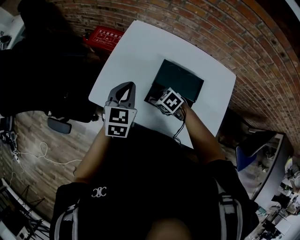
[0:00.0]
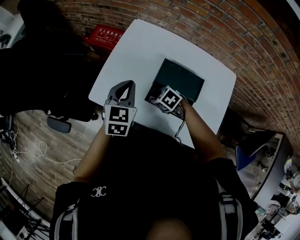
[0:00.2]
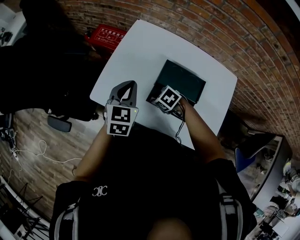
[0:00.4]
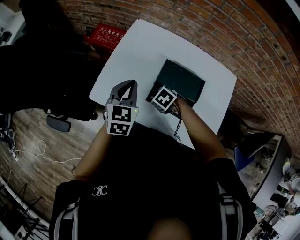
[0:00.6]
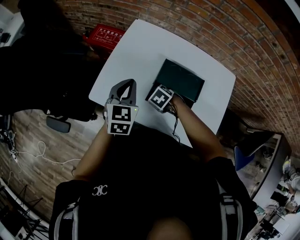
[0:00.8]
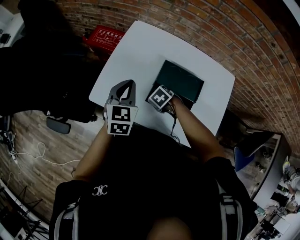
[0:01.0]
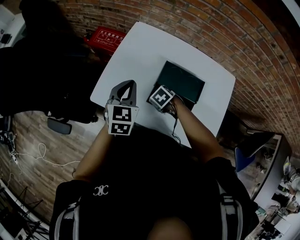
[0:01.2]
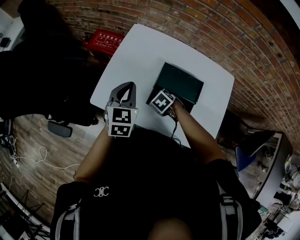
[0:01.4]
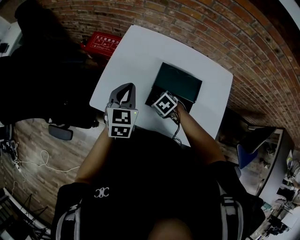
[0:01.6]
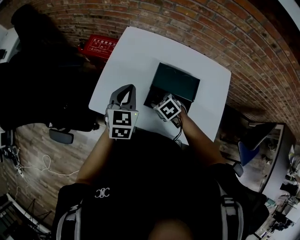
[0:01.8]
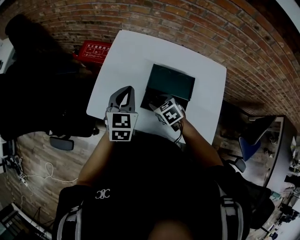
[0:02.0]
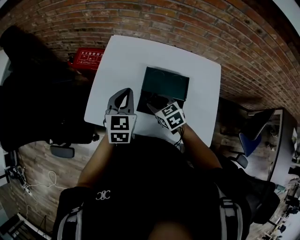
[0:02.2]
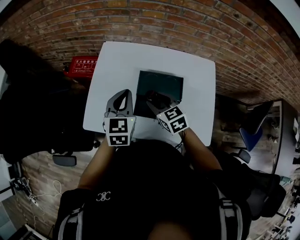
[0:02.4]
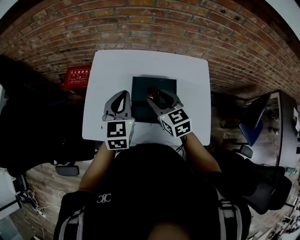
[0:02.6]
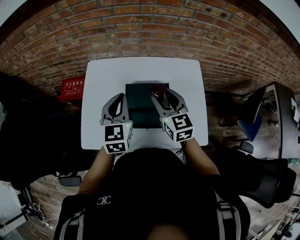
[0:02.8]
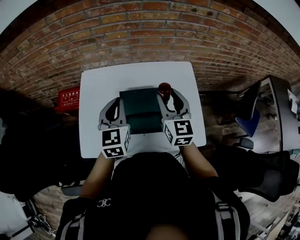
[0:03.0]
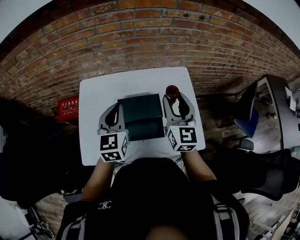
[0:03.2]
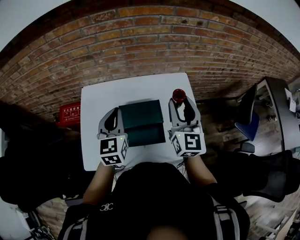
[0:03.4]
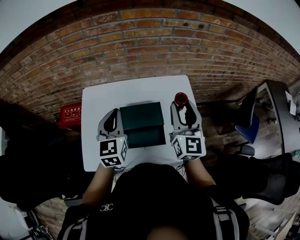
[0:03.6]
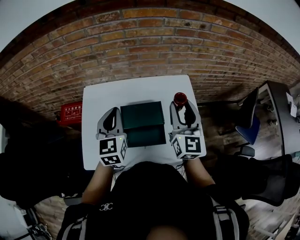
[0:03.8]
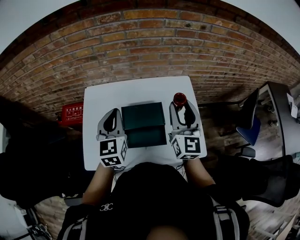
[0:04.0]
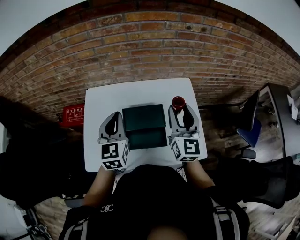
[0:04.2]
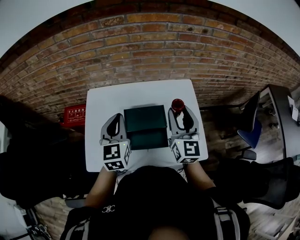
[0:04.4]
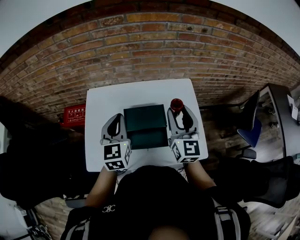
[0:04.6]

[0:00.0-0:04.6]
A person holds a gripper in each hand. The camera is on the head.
0:00.0 to 0:01.6: The grippers stay close to where they were, moving slightly.
0:01.6 to 0:03.0: The left gripper ends up roughly 15 cm from where it was; the right gripper heads upward, covering approximately 30 cm, and tilts its fingers about 60 degrees upward.
0:03.0 to 0:04.6: The right gripper shifts by about 5 cm.

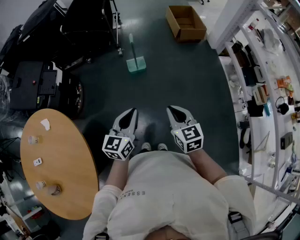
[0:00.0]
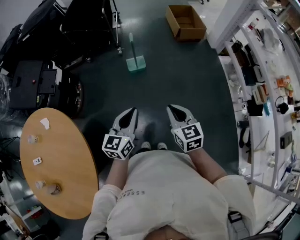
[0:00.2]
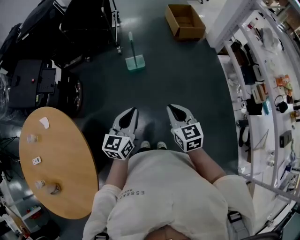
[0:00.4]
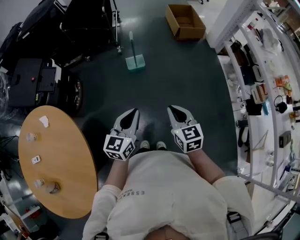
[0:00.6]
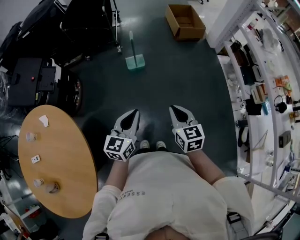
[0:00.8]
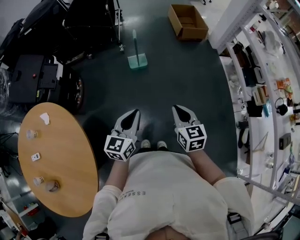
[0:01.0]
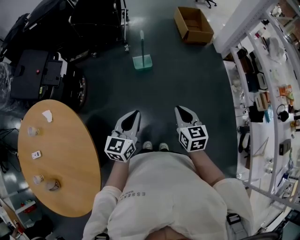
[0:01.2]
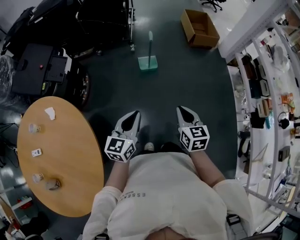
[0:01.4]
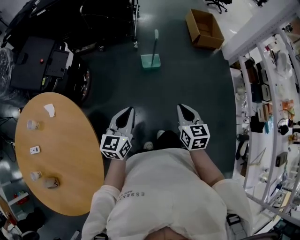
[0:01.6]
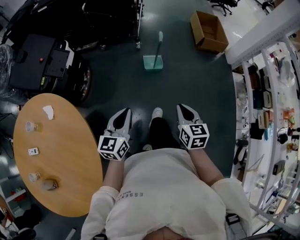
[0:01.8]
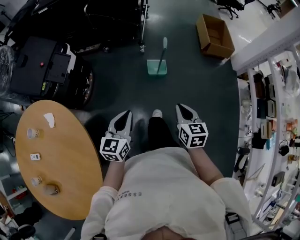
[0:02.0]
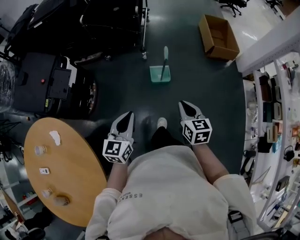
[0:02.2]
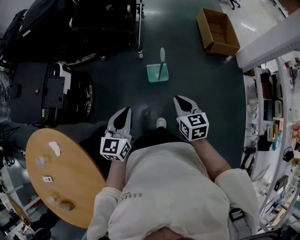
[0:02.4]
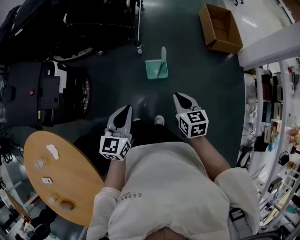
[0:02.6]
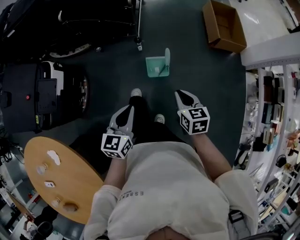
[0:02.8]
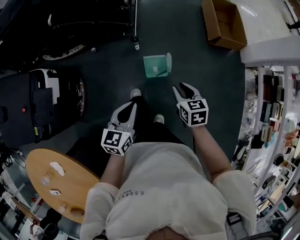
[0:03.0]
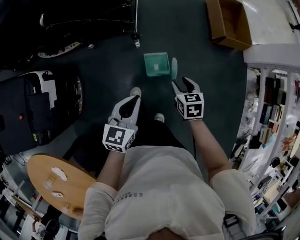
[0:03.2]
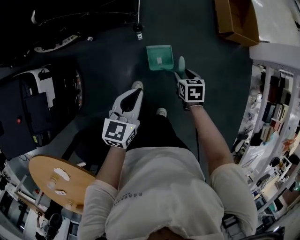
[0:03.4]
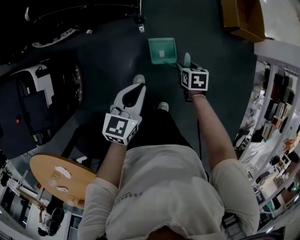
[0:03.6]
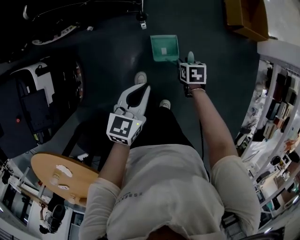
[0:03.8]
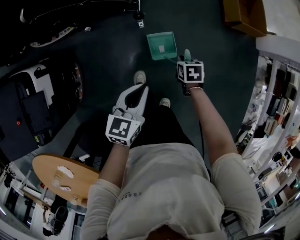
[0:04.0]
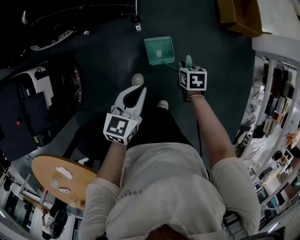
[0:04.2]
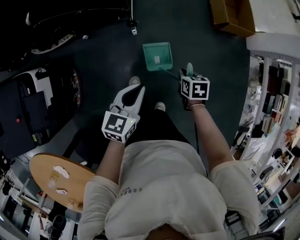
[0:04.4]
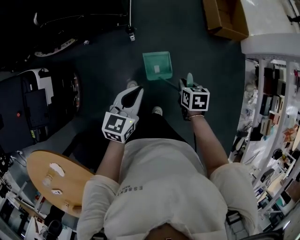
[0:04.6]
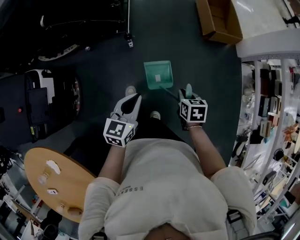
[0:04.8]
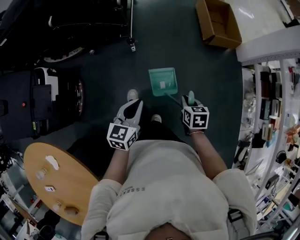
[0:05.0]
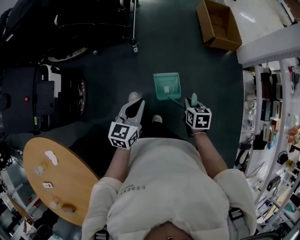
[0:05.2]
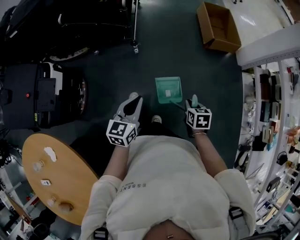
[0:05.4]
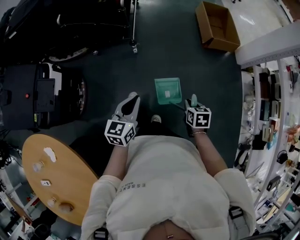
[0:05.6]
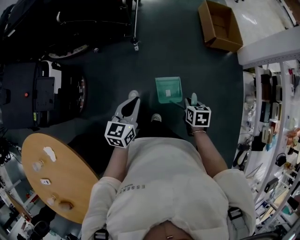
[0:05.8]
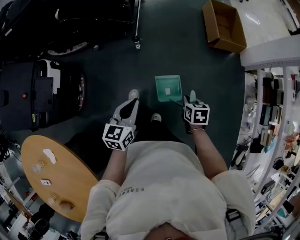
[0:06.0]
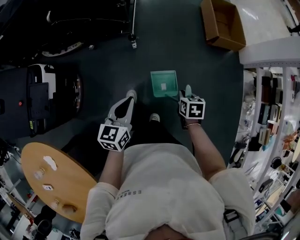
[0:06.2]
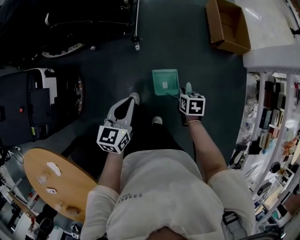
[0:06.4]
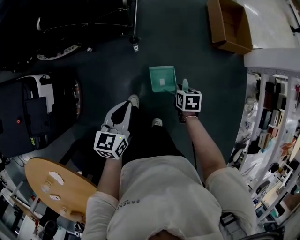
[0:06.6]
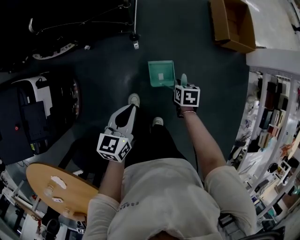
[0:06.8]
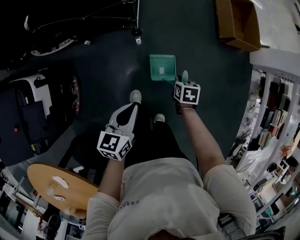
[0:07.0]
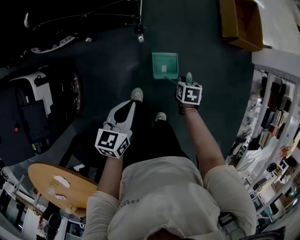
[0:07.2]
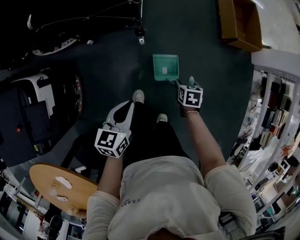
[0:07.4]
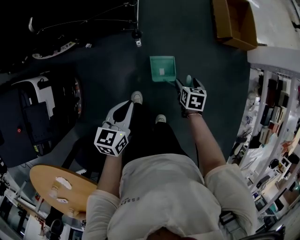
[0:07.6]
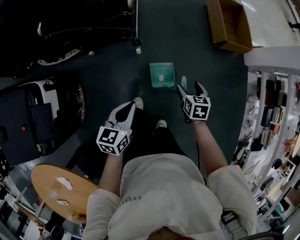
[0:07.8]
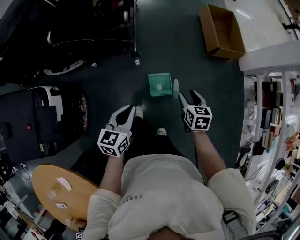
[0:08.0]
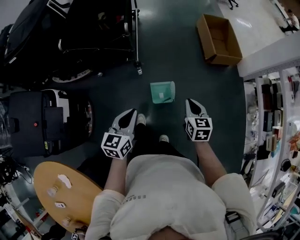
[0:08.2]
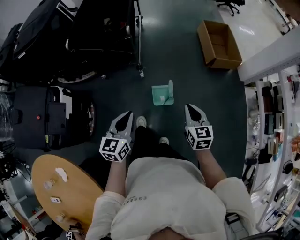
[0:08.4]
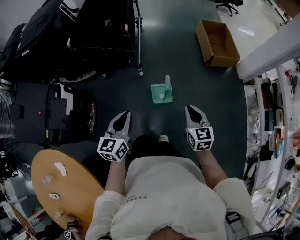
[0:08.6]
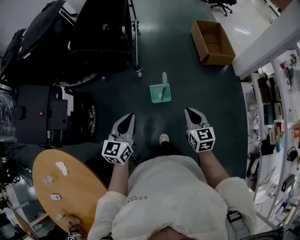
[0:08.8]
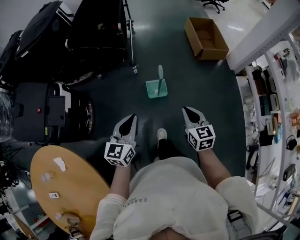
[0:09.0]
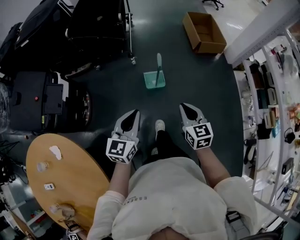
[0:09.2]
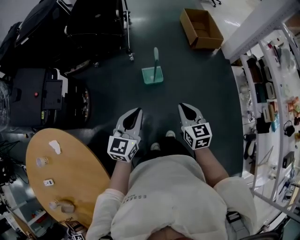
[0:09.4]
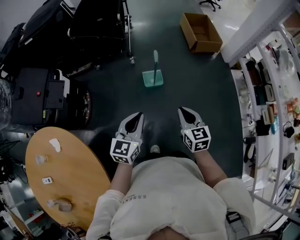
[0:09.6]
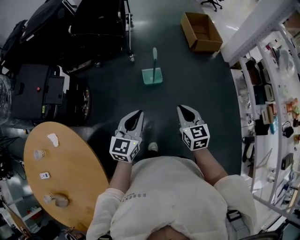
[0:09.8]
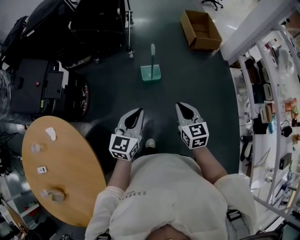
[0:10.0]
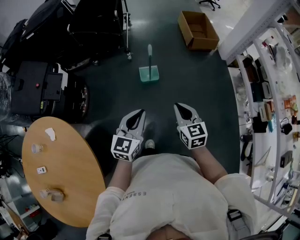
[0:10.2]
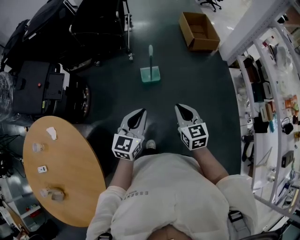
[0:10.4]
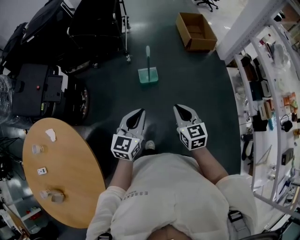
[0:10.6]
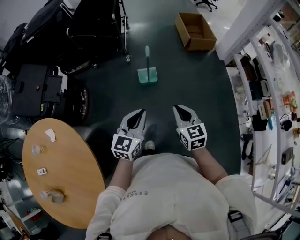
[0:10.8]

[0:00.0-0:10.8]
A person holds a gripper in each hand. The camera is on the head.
0:00.0 to 0:01.6: The right gripper moves to the left, some 10 cm. Meanwhile the left gripper goes some 15 cm to the left.
0:01.6 to 0:03.0: The two grippers travel together, forward, roughly 50 cm.
0:03.0 to 0:04.6: The left gripper travels forward by approximately 5 cm. Meanwhile the right gripper shifts roughly 5 cm downward.
0:04.6 to 0:06.2: The left gripper is displaced backward by roughly 5 cm; the right gripper moves roughly 15 cm backward and comes back.
0:06.2 to 0:07.8: The right gripper heads forward and to the left, covering roughly 15 cm, and opens its fingers, while the left gripper heads forward, to the left and downward, covering roughly 15 cm.
0:07.8 to 0:09.2: The left gripper goes some 40 cm backward, upward and to the right, and turns by approximately 20 degrees; the right gripper moves backward and upward, roughly 40 cm, turns by some 30 degrees, and closes up.
0:09.2 to 0:10.8: The left gripper shifts roughly 15 cm backward and to the right; the right gripper travels backward by about 15 cm.

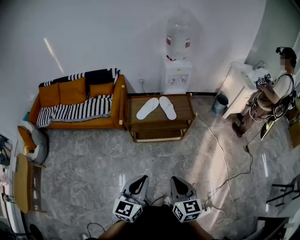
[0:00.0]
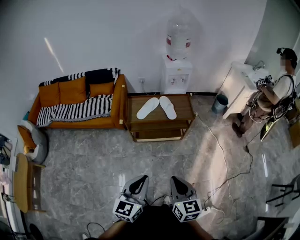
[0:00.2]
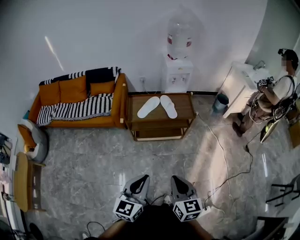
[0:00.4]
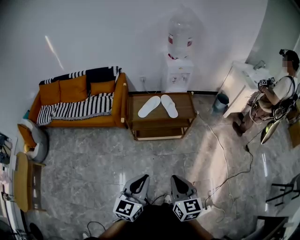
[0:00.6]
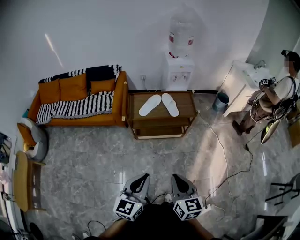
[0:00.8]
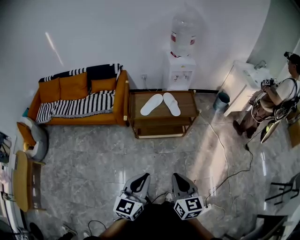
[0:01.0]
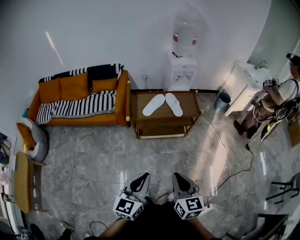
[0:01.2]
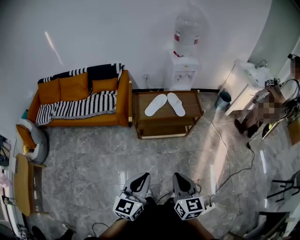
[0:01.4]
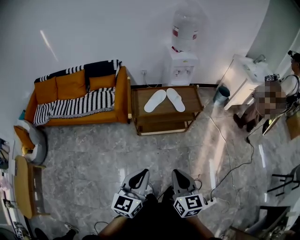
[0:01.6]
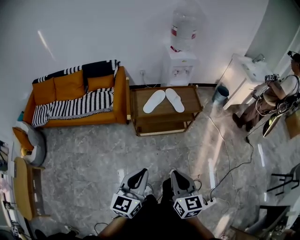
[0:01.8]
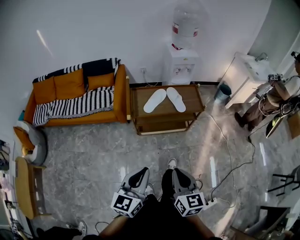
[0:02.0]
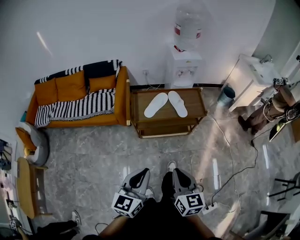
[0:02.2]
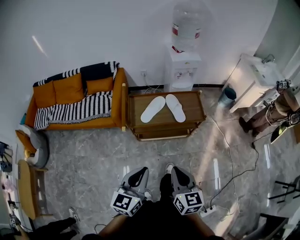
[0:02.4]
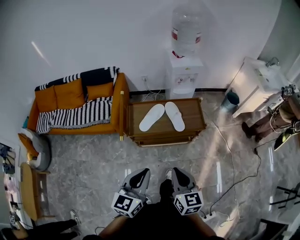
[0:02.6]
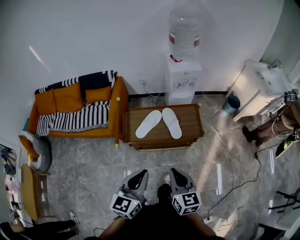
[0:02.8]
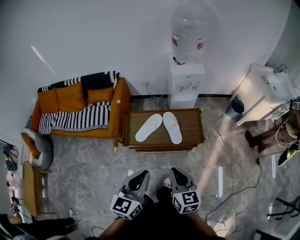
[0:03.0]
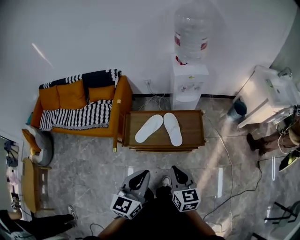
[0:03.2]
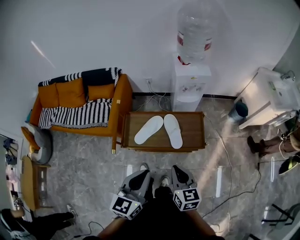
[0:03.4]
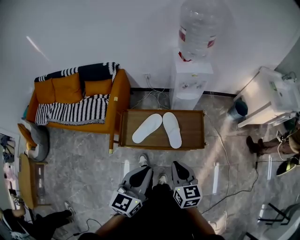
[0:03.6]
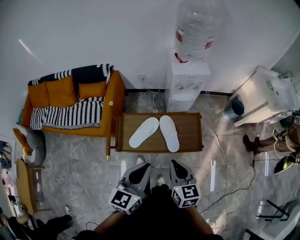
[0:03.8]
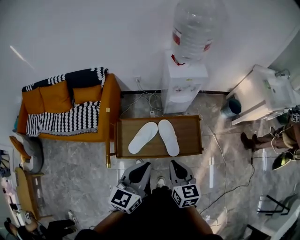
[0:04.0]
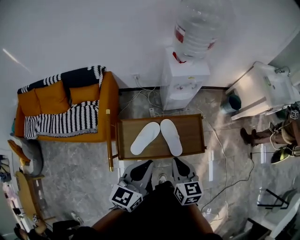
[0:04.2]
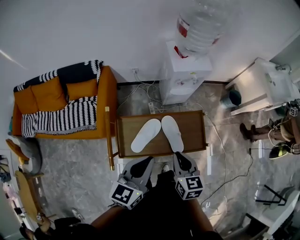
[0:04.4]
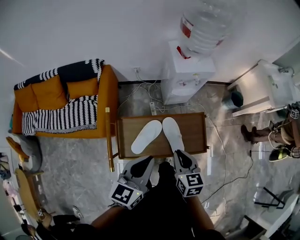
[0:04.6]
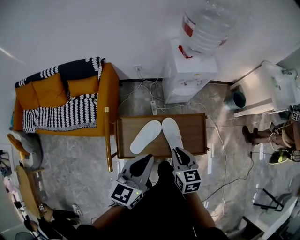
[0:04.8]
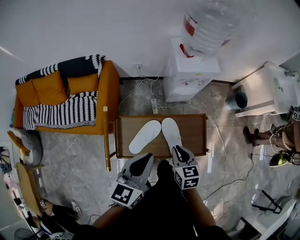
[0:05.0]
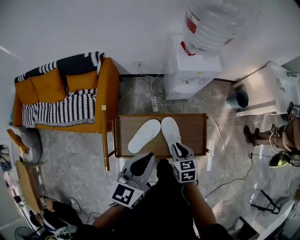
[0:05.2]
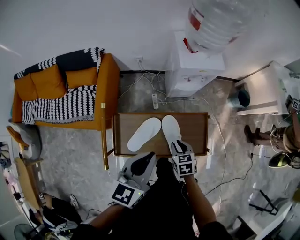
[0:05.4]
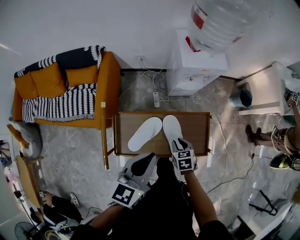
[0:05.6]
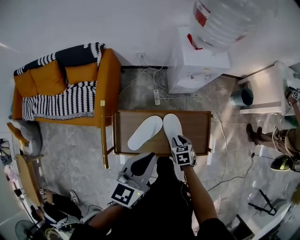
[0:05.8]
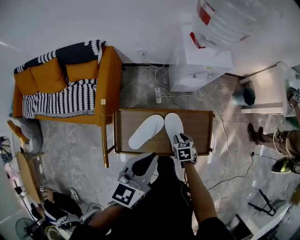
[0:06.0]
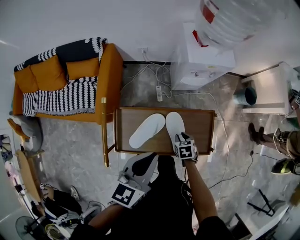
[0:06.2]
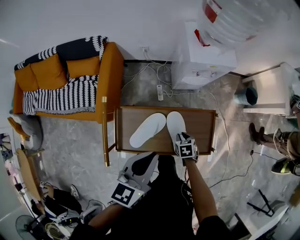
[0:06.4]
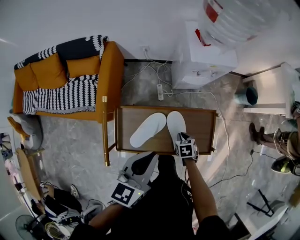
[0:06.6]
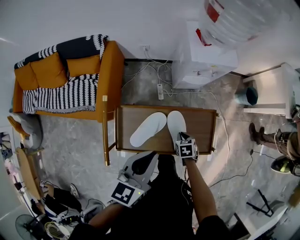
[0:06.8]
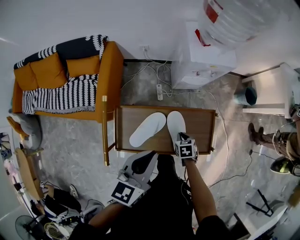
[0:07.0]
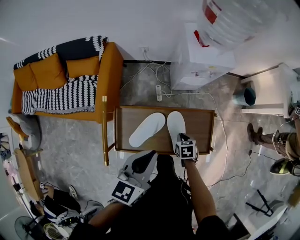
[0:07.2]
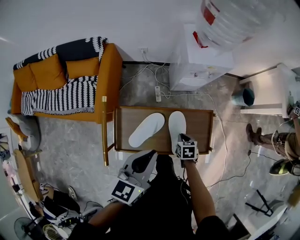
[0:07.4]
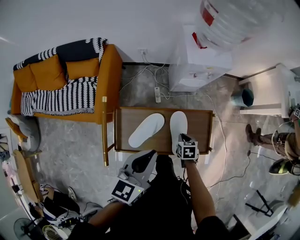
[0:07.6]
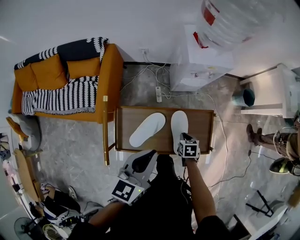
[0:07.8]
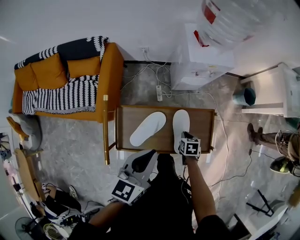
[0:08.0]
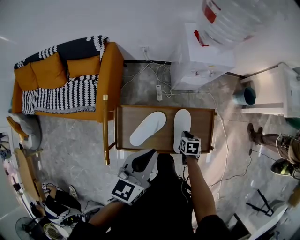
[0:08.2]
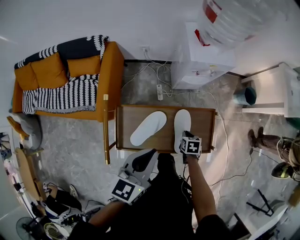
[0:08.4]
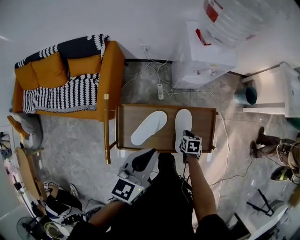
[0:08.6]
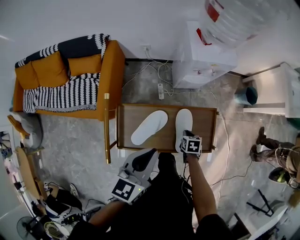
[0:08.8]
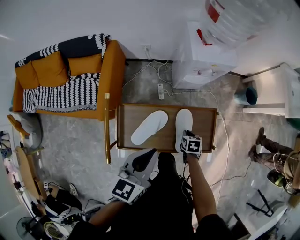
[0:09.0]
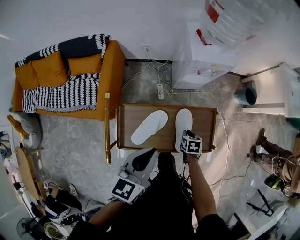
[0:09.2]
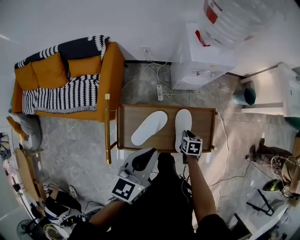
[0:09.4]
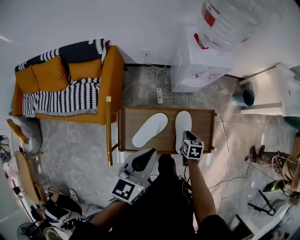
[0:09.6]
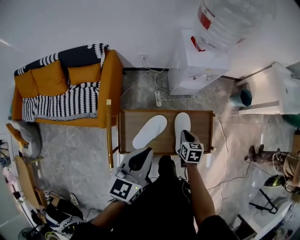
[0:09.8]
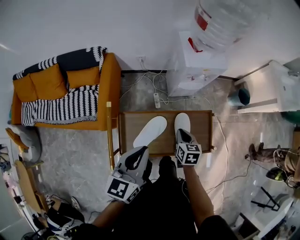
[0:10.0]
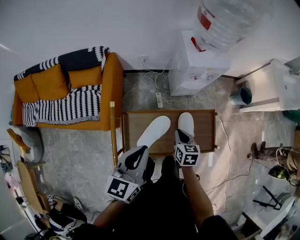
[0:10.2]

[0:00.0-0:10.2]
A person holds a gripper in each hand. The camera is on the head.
0:00.0 to 0:01.4: The grippers both shift to the left by some 10 cm.
0:01.4 to 0:03.0: The two grippers go roughly 30 cm forward.
0:03.0 to 0:04.4: The two grippers go some 25 cm forward.
0:04.4 to 0:05.8: The right gripper heads downward, covering approximately 25 cm, and tips its fingers downward by about 30 degrees; the left gripper goes about 10 cm forward.
0:05.8 to 0:08.8: The grippers make only small movements.
0:08.8 to 0:10.2: The right gripper goes roughly 15 cm upward and to the left, and changes its angle by some 20 degrees. Meanwhile the left gripper shifts some 5 cm to the left.
